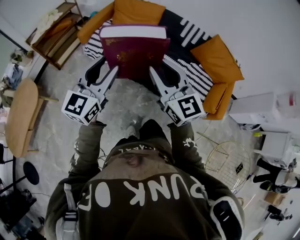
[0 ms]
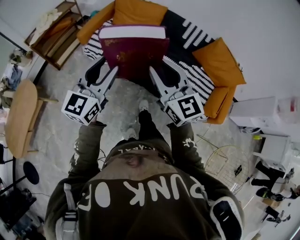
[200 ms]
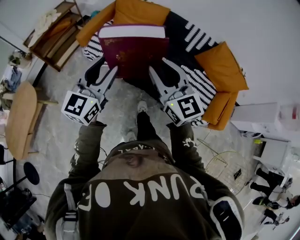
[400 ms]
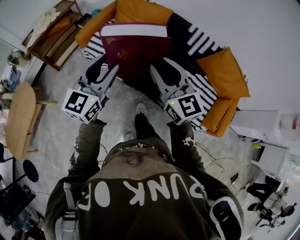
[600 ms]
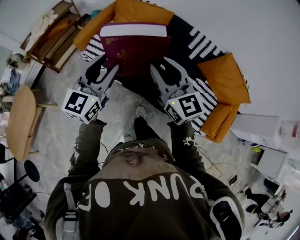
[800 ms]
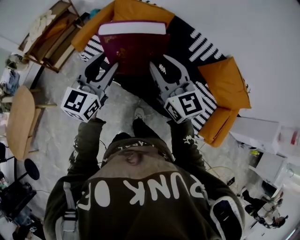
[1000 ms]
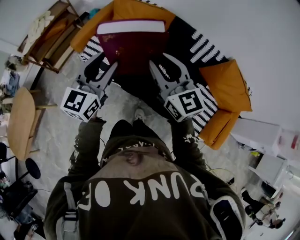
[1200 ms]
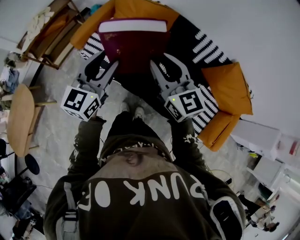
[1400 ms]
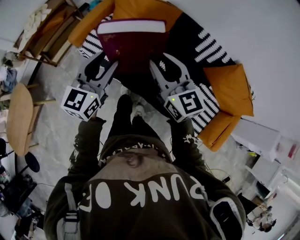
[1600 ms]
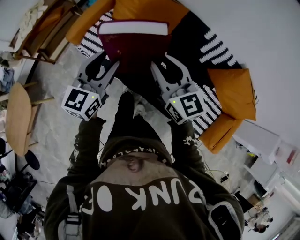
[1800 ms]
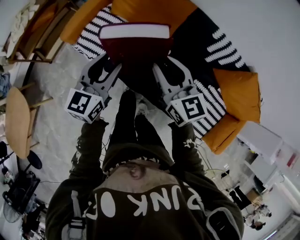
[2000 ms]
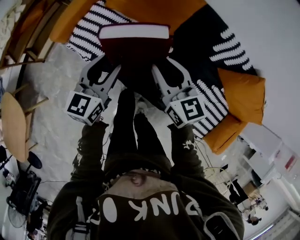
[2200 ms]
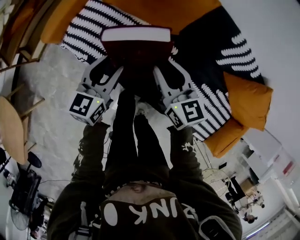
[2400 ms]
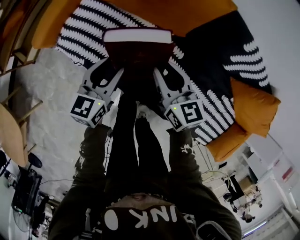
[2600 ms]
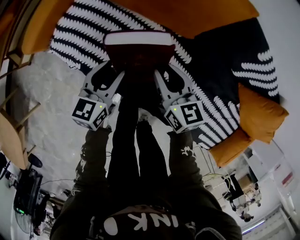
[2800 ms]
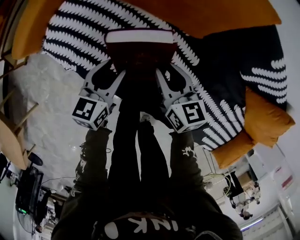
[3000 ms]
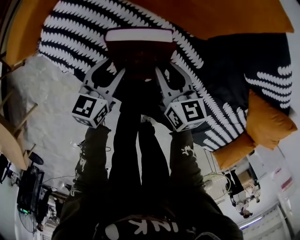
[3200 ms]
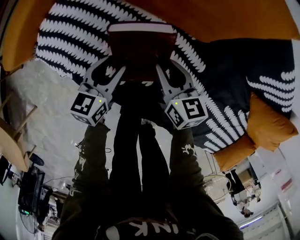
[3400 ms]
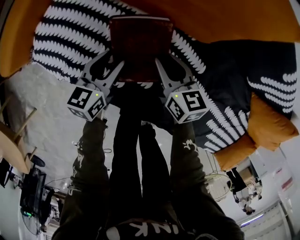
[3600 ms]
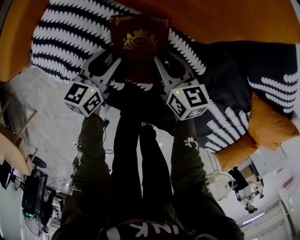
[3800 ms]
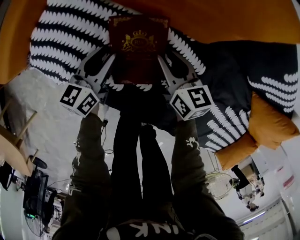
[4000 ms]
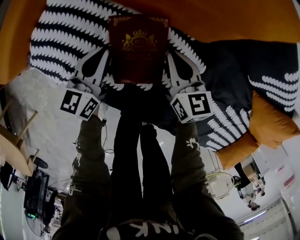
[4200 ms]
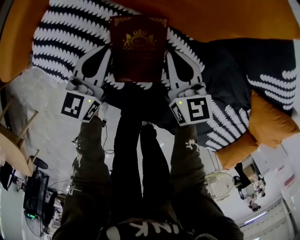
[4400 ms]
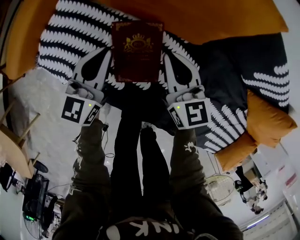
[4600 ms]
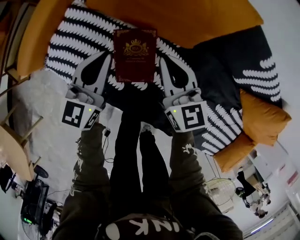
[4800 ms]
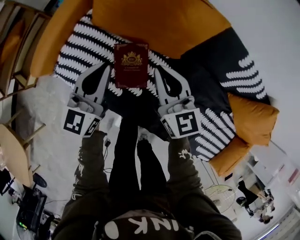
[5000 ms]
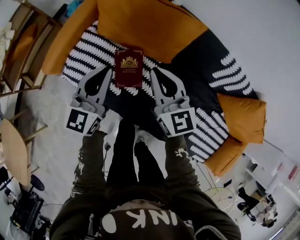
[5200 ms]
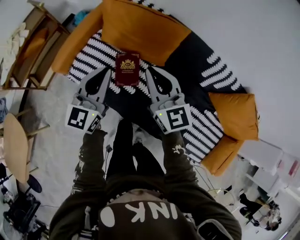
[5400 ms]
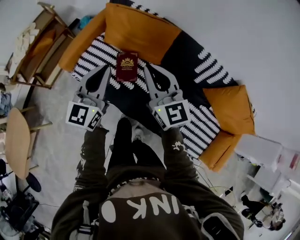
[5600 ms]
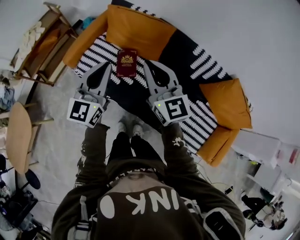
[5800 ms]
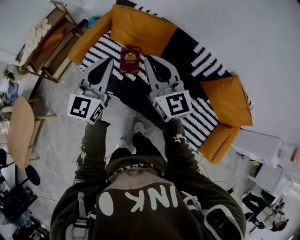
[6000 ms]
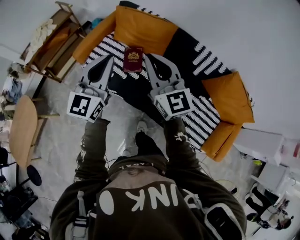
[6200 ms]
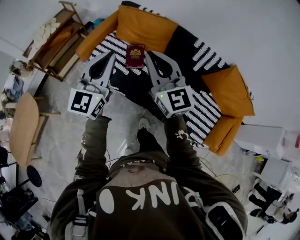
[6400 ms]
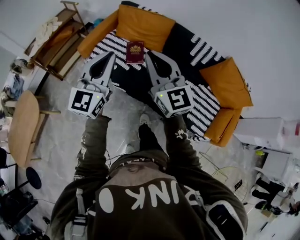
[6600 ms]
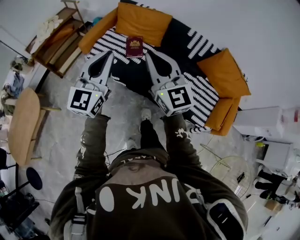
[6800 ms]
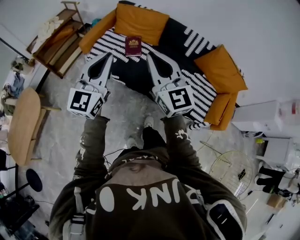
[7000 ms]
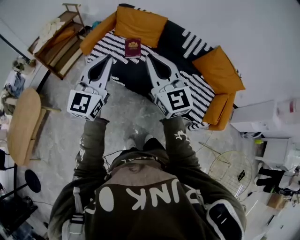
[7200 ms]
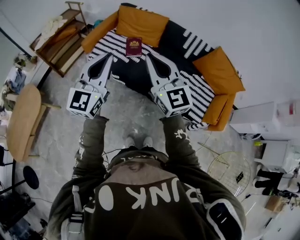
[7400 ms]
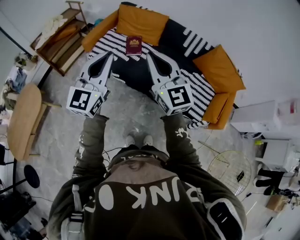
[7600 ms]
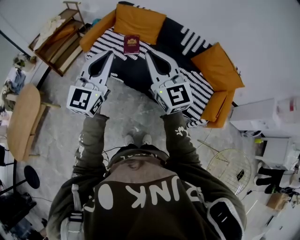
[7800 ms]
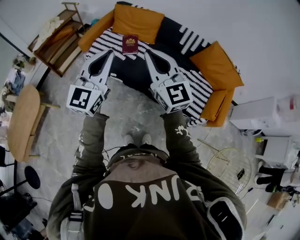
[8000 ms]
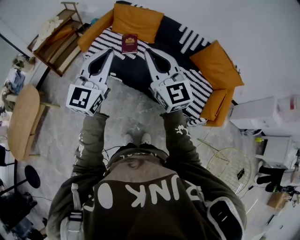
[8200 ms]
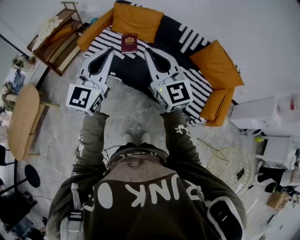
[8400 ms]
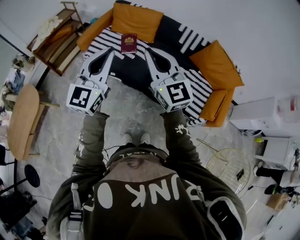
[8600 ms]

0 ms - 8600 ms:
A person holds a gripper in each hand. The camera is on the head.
0 ms - 1400 ms: The grippers both shift forward by some 30 cm.
1400 ms - 2800 ms: The grippers both shift downward and forward by roughly 50 cm. The left gripper rotates approximately 30 degrees. The right gripper turns by about 30 degrees.
2800 ms - 4400 ms: The right gripper goes some 15 cm downward and forward, and closes up. Meanwhile the left gripper goes roughly 15 cm forward and downward, and closes up.
4400 ms - 5800 ms: Both grippers travel together upward and backward, roughly 60 cm. The right gripper turns by approximately 30 degrees; the left gripper swivels some 30 degrees.
5800 ms - 7200 ms: The pair of grippers is taken backward, some 40 cm.
7200 ms - 8600 ms: Both grippers travel together to the right, about 5 cm.

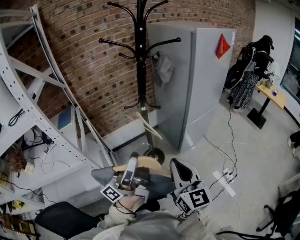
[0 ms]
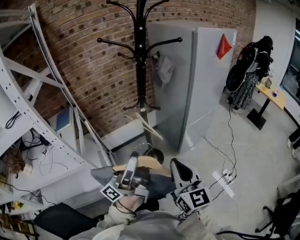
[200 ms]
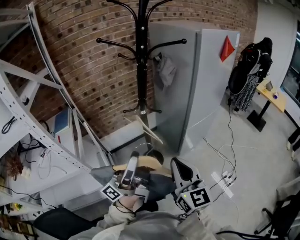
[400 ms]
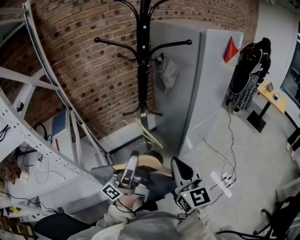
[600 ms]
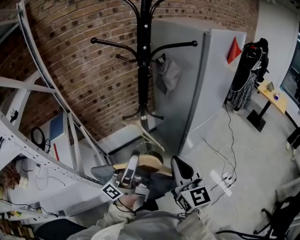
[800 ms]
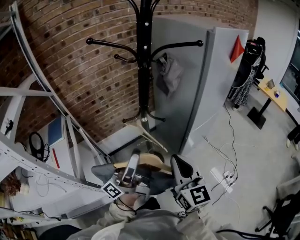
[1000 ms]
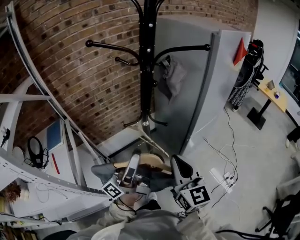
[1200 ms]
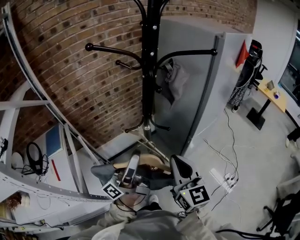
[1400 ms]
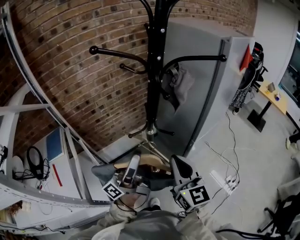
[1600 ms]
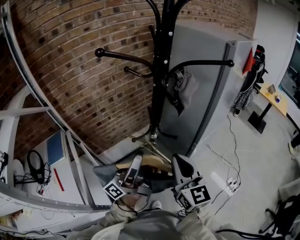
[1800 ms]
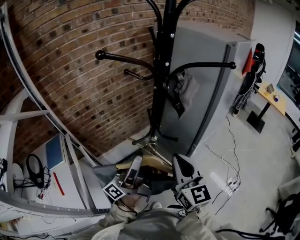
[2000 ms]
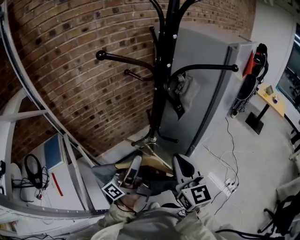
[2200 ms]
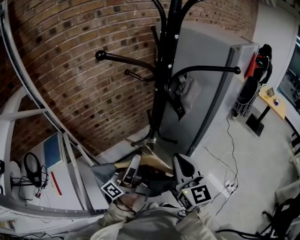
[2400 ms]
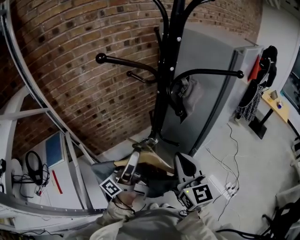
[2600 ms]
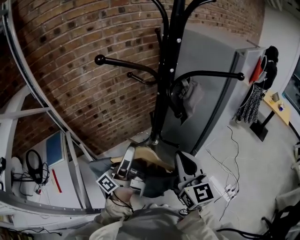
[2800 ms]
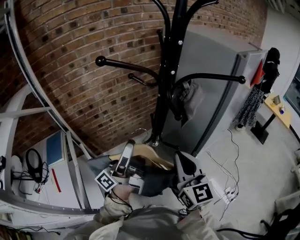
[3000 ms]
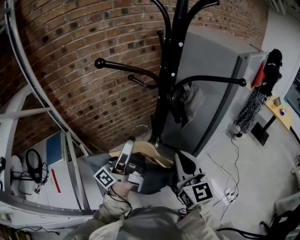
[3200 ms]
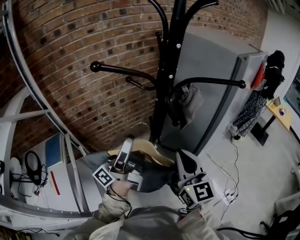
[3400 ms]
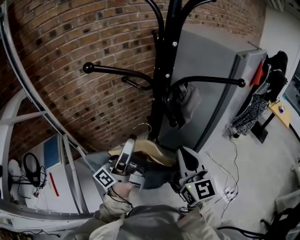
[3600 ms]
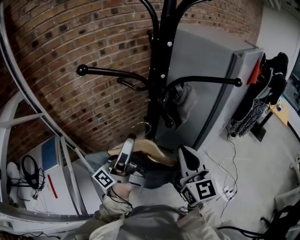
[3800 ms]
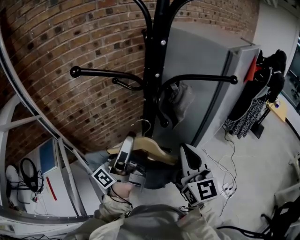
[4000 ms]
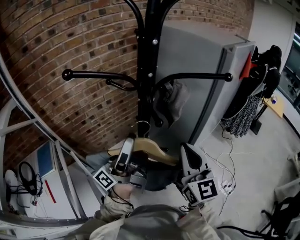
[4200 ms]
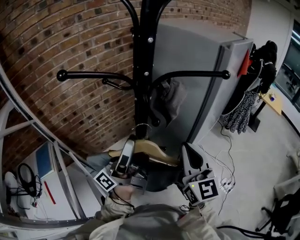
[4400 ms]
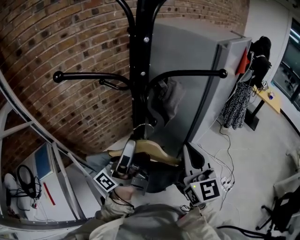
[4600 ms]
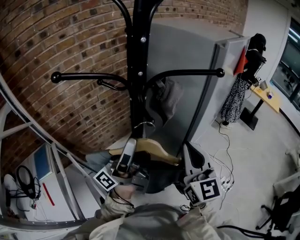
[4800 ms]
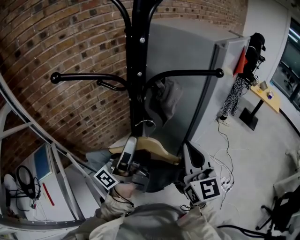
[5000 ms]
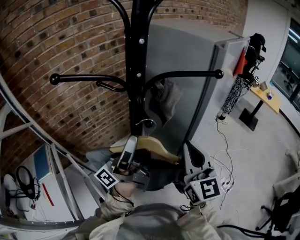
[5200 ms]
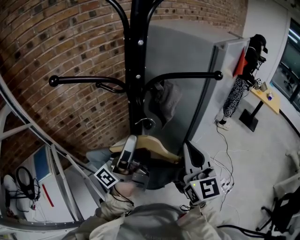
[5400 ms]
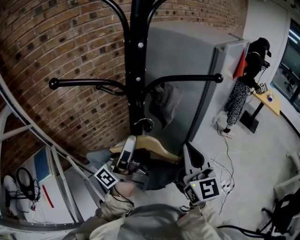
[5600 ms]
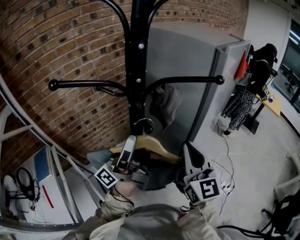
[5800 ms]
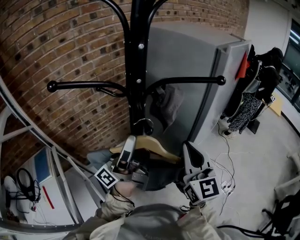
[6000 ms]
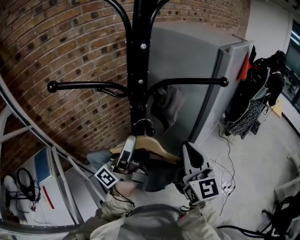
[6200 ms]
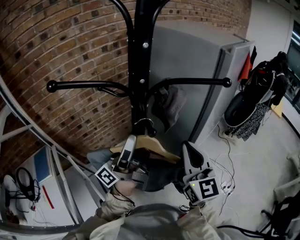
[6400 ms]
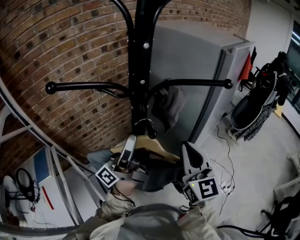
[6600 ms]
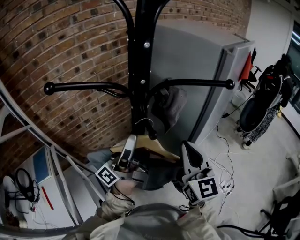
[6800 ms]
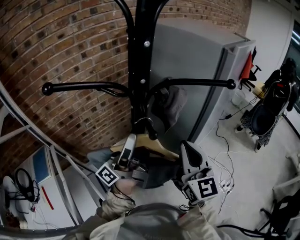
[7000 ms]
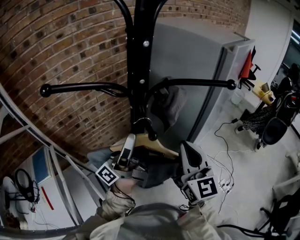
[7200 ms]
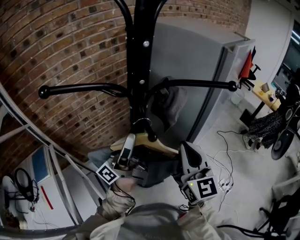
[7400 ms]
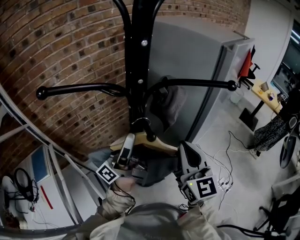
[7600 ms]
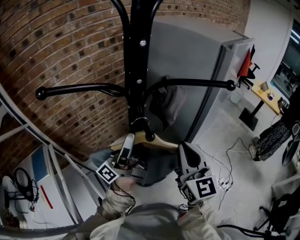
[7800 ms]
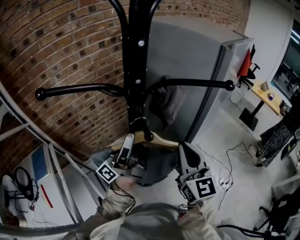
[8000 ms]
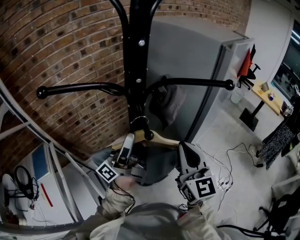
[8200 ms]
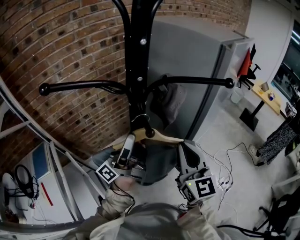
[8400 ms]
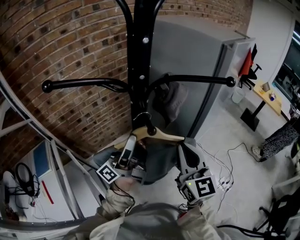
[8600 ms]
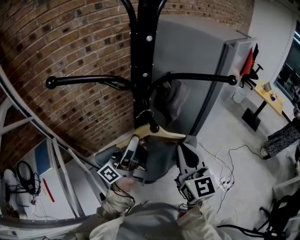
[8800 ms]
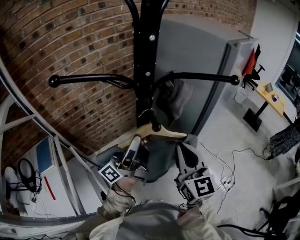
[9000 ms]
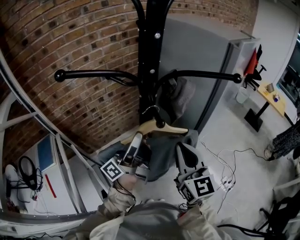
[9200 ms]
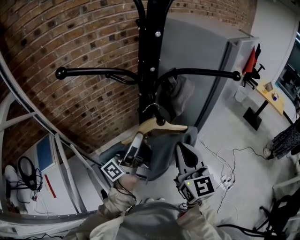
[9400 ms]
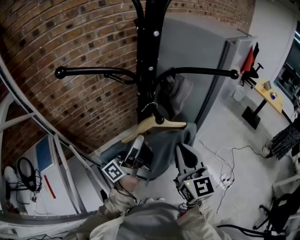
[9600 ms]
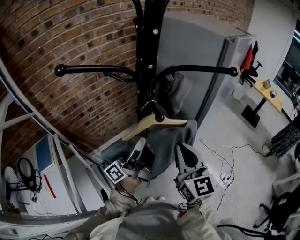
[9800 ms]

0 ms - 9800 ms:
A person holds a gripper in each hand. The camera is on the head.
0 ms - 1400 ms: The grippers both shift forward by roughly 25 cm.
1400 ms - 2800 ms: The left gripper heads forward and to the left, covering about 15 cm. The right gripper shifts some 10 cm forward.
2800 ms - 4200 ms: The right gripper goes roughly 5 cm to the right. The left gripper travels upward and to the right by approximately 10 cm.
4200 ms - 5600 ms: The grippers make only small movements.
5600 ms - 7000 ms: The left gripper changes place by about 5 cm.
7000 ms - 8400 ms: The grippers make only small movements.
8400 ms - 9800 ms: The left gripper ends up some 5 cm from where it was, while the right gripper shifts by approximately 5 cm.

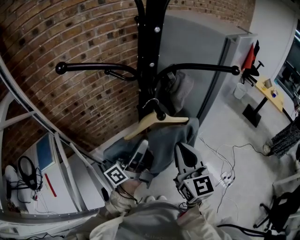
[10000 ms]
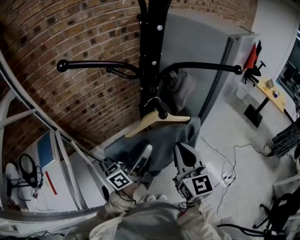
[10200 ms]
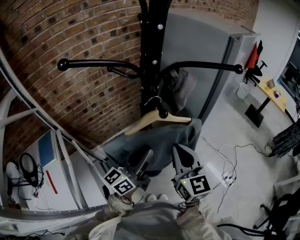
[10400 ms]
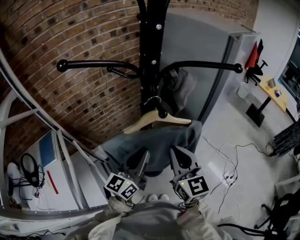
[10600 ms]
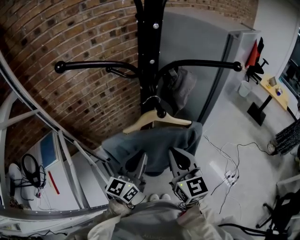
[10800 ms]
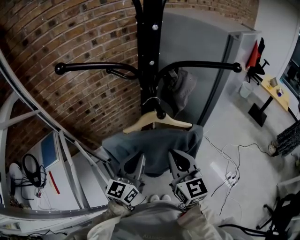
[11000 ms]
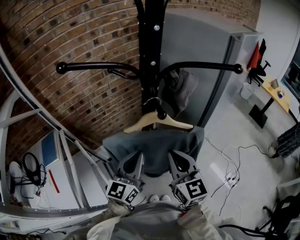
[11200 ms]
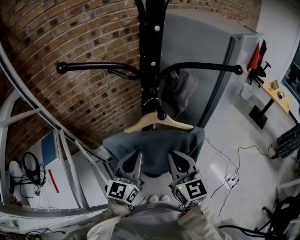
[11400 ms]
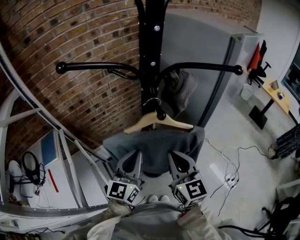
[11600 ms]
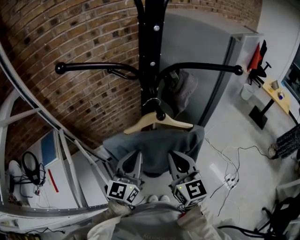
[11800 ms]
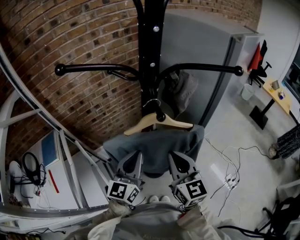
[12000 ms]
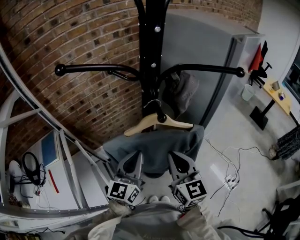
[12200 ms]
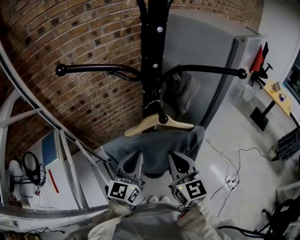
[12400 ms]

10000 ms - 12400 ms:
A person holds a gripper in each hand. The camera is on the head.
10000 ms - 11200 ms: The right gripper shifts by some 5 cm. The left gripper changes place by roughly 5 cm, twists approximately 60 degrees clockwise, seen from behind, and closes.
11200 ms - 12400 ms: Both grippers stay put.

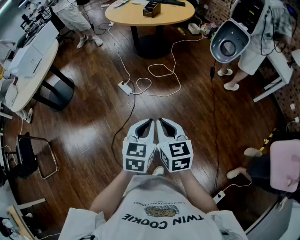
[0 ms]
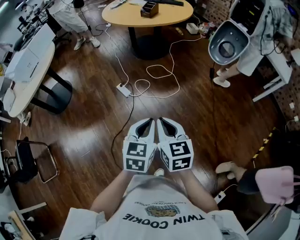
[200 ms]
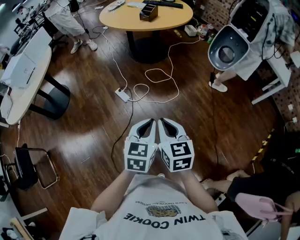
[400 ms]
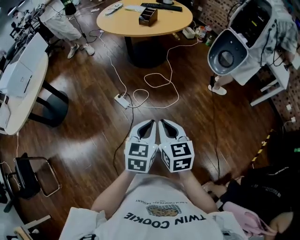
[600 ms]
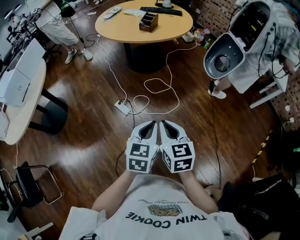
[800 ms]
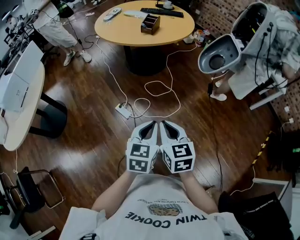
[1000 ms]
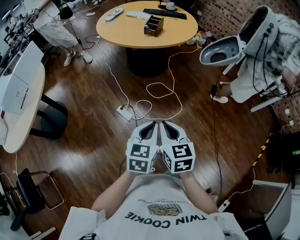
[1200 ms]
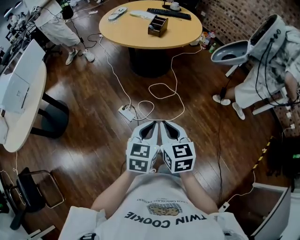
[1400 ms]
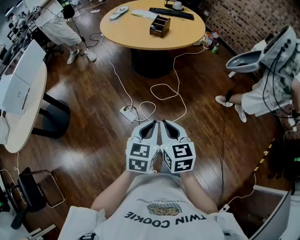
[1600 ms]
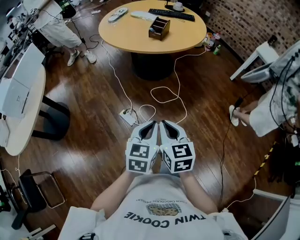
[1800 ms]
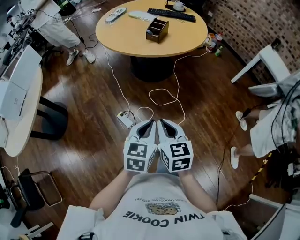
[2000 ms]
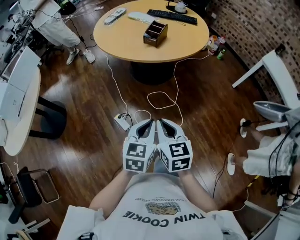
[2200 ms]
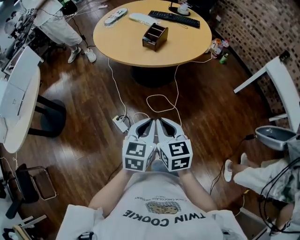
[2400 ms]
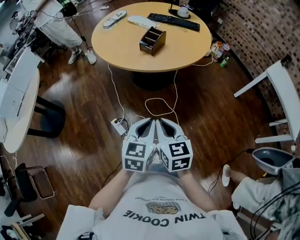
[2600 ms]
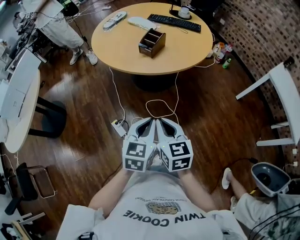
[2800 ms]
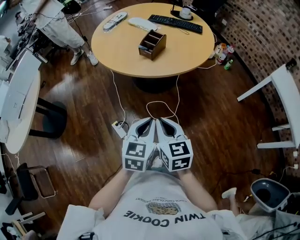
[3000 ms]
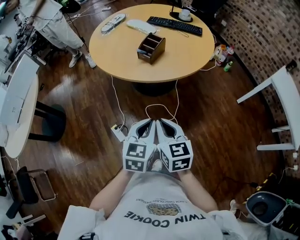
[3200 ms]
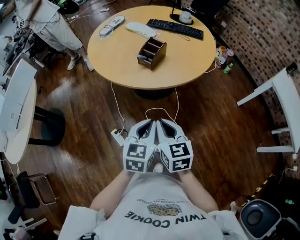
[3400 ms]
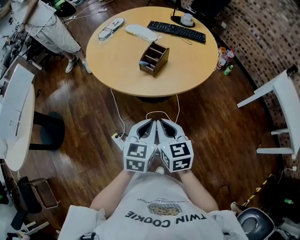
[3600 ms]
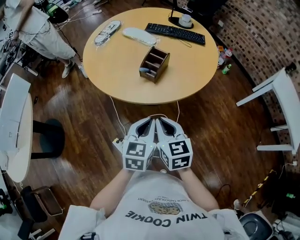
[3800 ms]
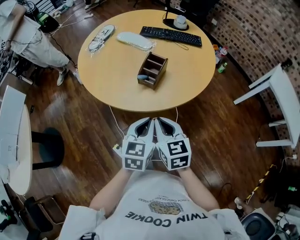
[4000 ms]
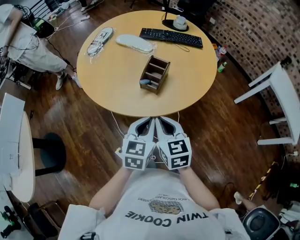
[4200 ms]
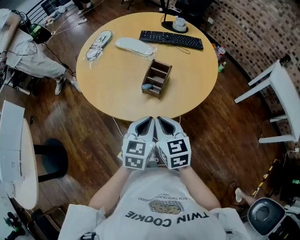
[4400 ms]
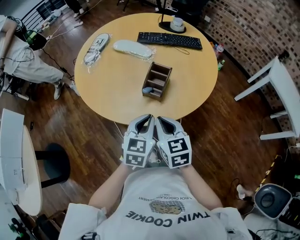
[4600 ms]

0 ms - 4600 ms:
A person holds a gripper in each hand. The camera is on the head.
0 ms - 1600 ms: The two grippers go approximately 35 cm forward and to the left.
1600 ms - 3000 ms: The grippers both shift forward and to the right by about 30 cm.
3000 ms - 4600 ms: Both grippers move forward, roughly 30 cm.
